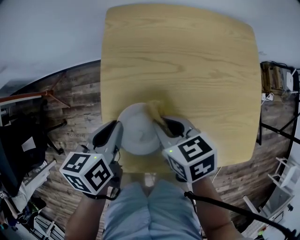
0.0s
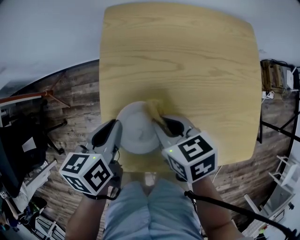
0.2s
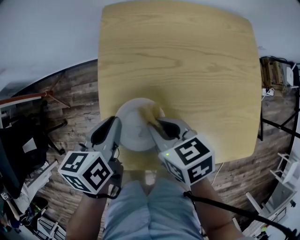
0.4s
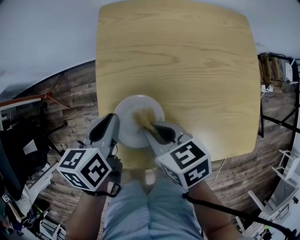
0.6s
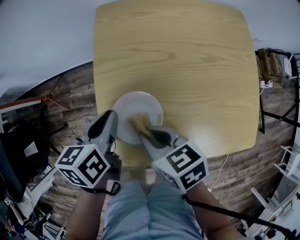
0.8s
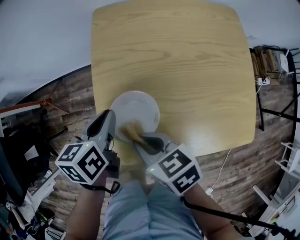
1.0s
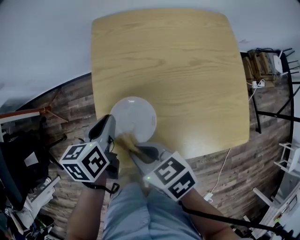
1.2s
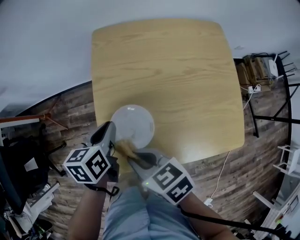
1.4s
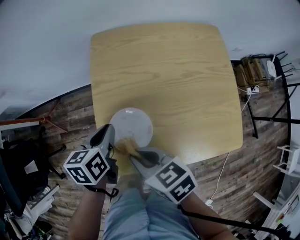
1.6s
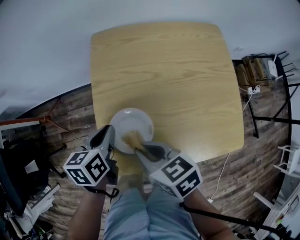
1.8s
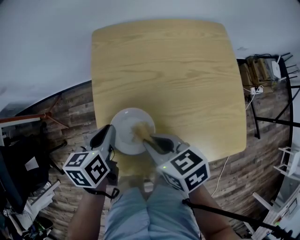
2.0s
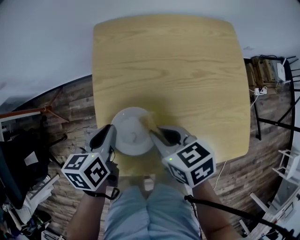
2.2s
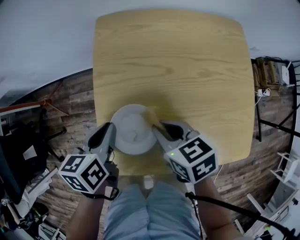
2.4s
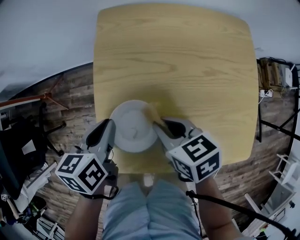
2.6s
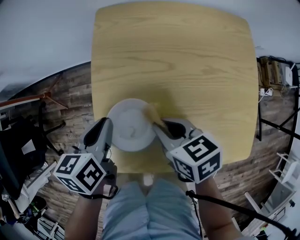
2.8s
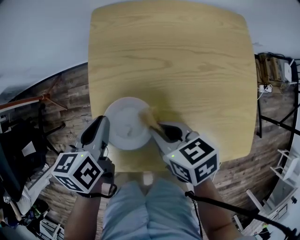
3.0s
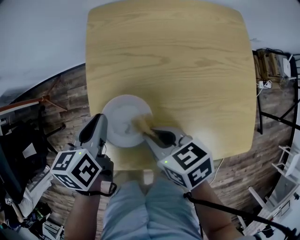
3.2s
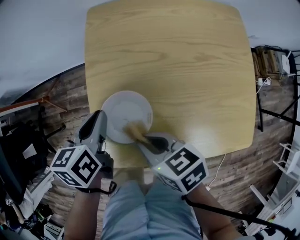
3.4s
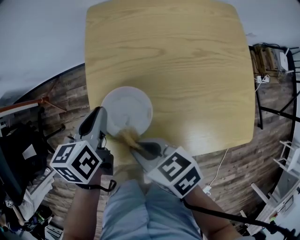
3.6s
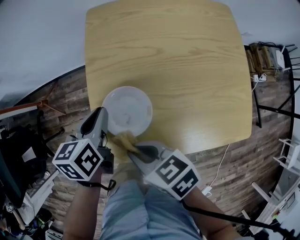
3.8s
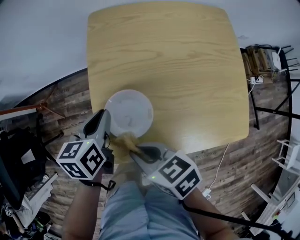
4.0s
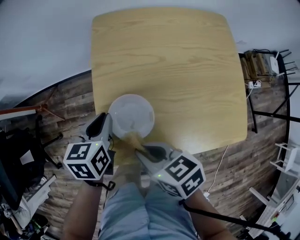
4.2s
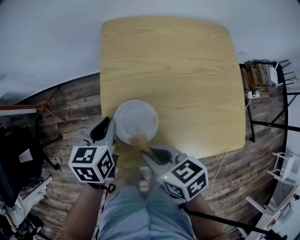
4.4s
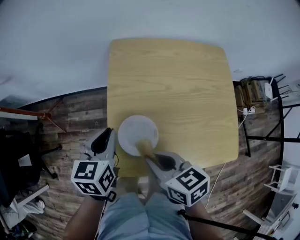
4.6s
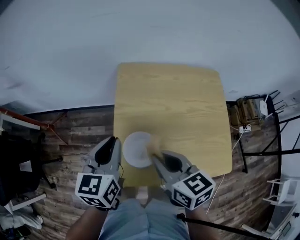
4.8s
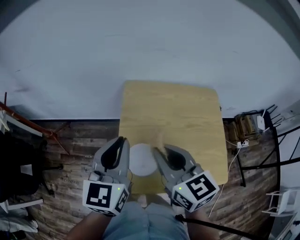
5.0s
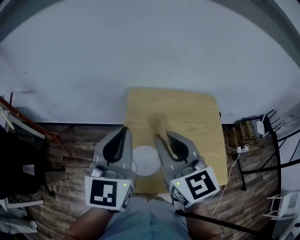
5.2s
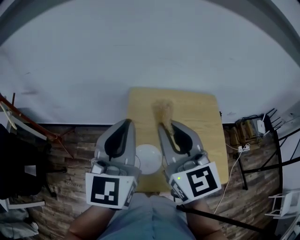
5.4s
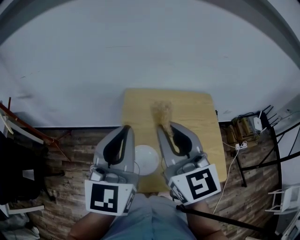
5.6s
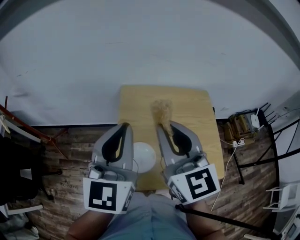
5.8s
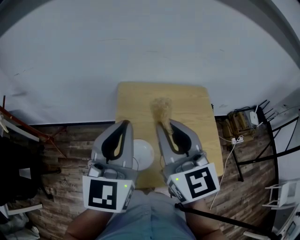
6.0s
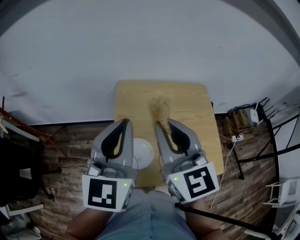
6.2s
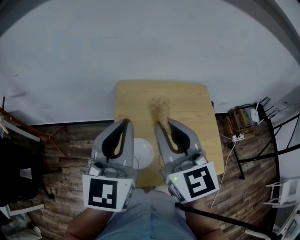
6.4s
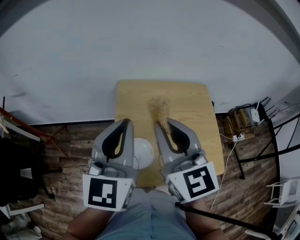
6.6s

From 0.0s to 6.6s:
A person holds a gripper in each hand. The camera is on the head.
From 0.0s to 1.6s: The right gripper heads backward, to the left and upward, covering some 10 cm.
From 1.6s to 3.2s: The right gripper moves to the right and downward, approximately 10 cm.
From 3.2s to 5.0s: The two grippers go roughly 25 cm upward. The right gripper changes its angle by roughly 40 degrees; the left gripper points its fingers about 30 degrees further upward.
From 5.0s to 6.6s: Both grippers travel together upward, some 10 cm. The right gripper swivels roughly 20 degrees.

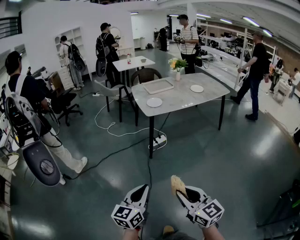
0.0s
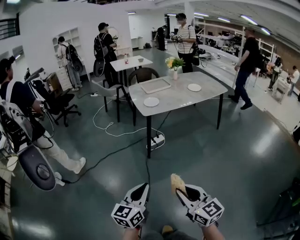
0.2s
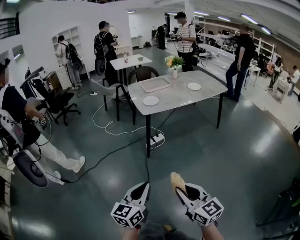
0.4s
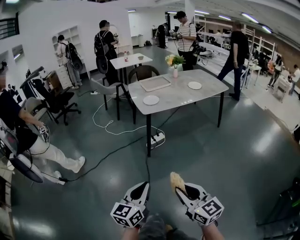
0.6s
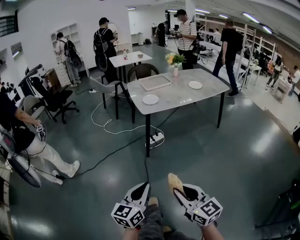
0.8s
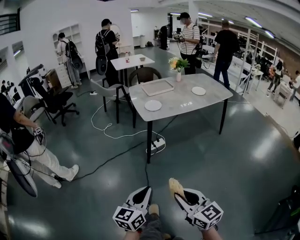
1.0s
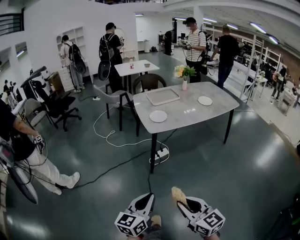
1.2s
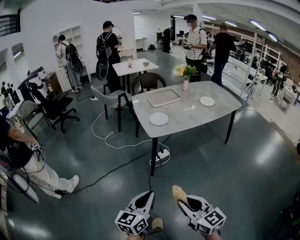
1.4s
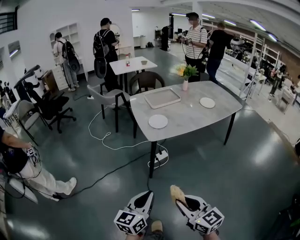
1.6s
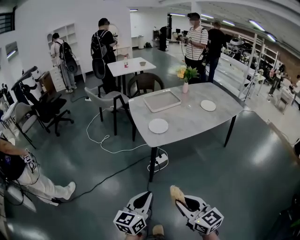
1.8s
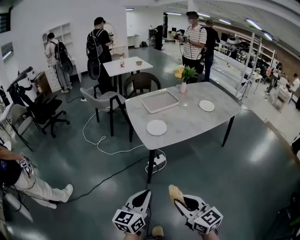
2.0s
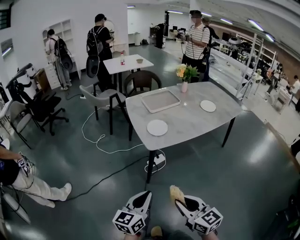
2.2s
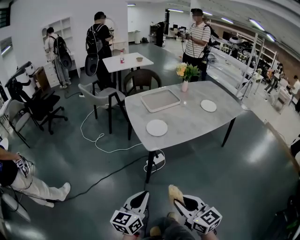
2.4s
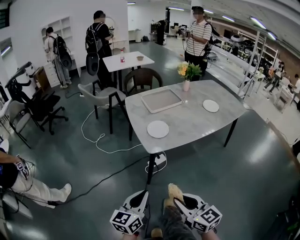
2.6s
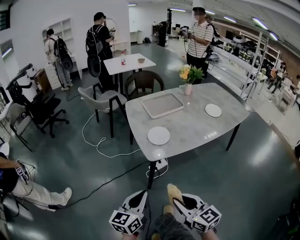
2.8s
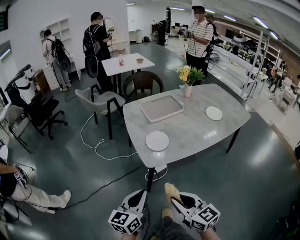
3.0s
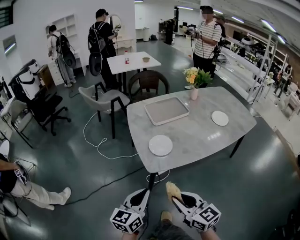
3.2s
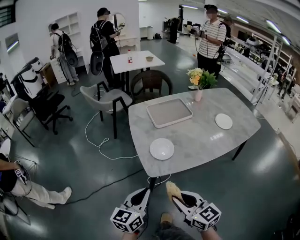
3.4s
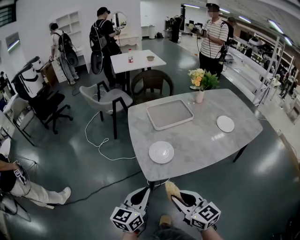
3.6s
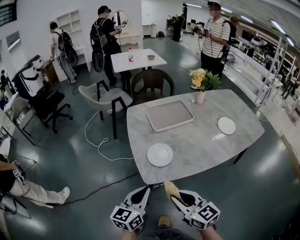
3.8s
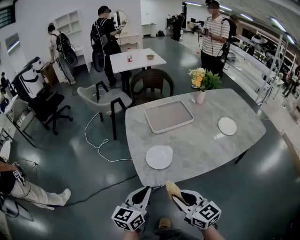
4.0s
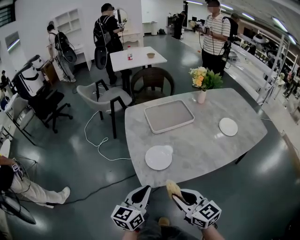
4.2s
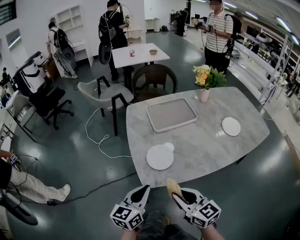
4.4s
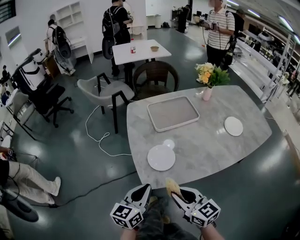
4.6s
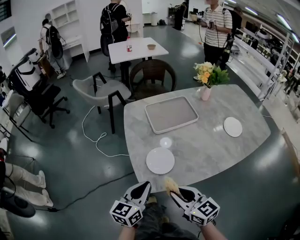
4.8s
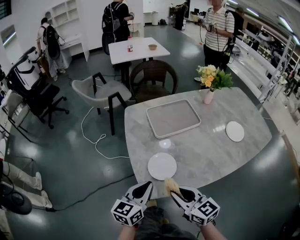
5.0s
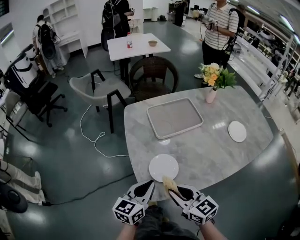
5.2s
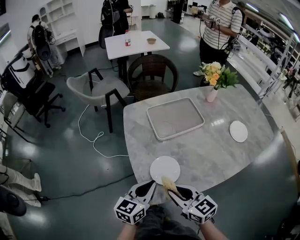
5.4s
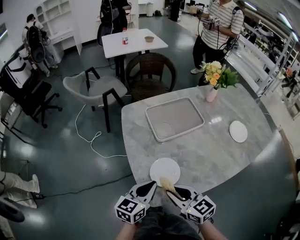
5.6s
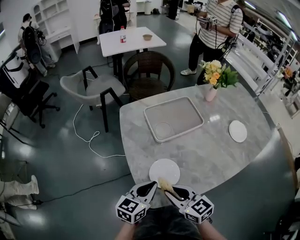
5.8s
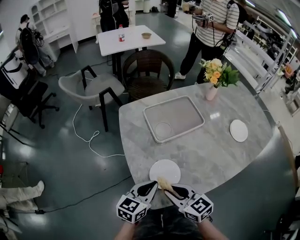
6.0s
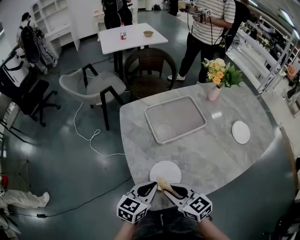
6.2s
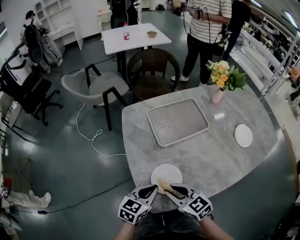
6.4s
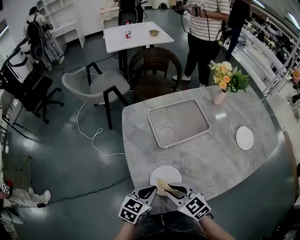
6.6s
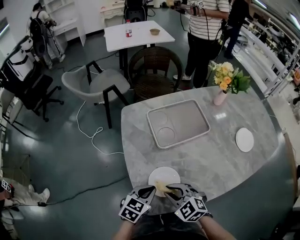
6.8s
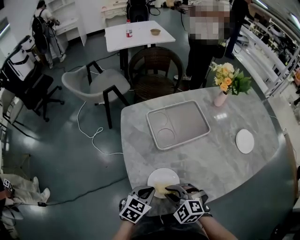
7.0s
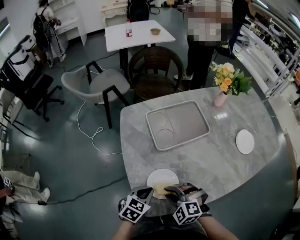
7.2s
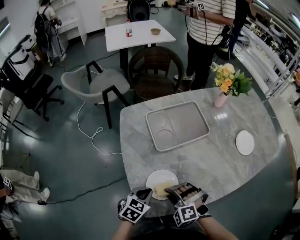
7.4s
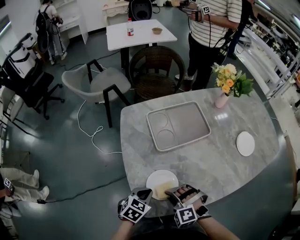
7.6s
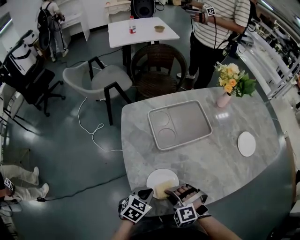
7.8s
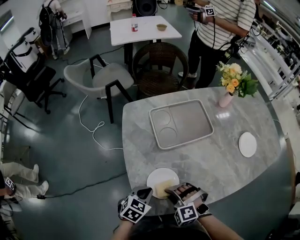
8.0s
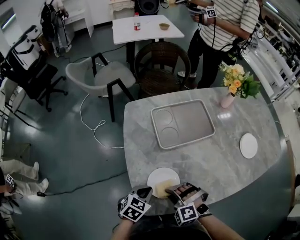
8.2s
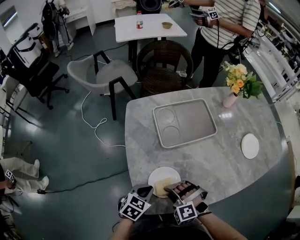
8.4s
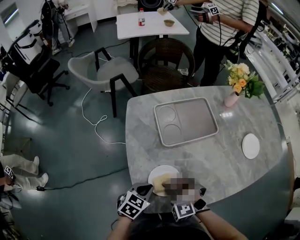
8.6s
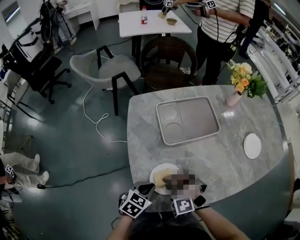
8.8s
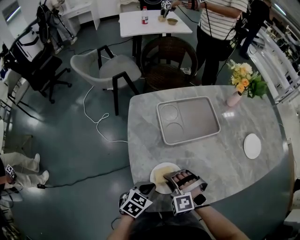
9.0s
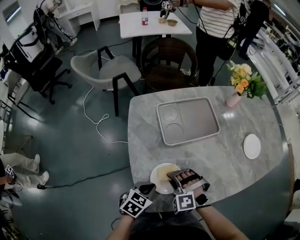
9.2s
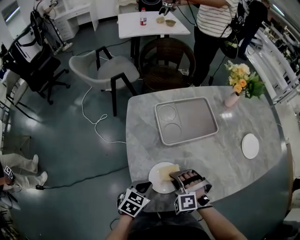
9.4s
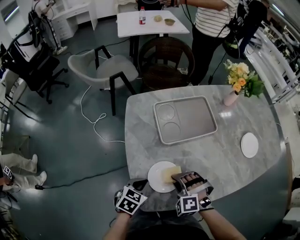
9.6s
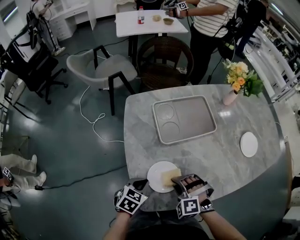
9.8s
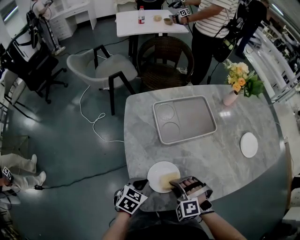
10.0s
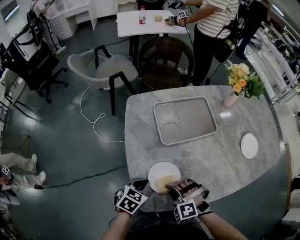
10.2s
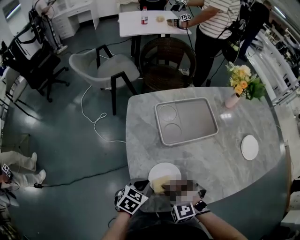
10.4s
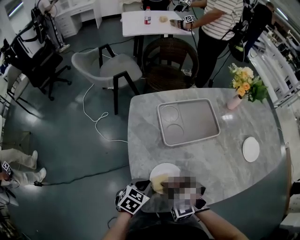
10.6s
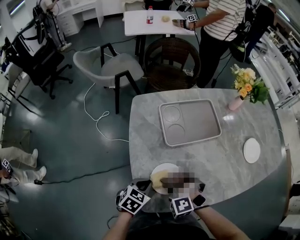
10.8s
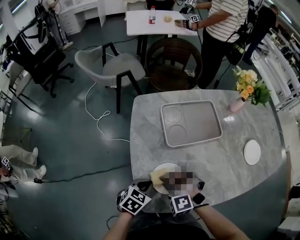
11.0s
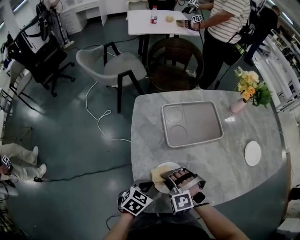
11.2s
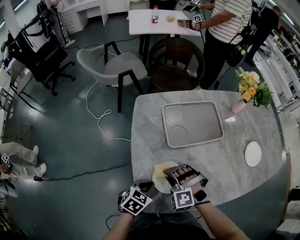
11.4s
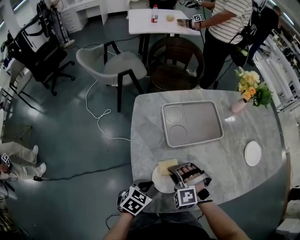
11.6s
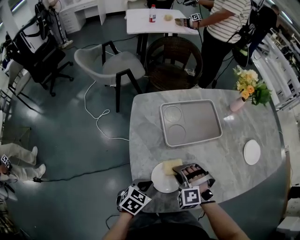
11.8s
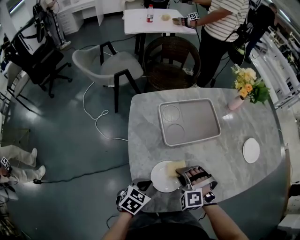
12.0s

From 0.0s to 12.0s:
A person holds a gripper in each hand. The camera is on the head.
From 0.0s to 1.6s: Both grippers travel together forward, approximately 25 cm.
From 1.6s to 3.0s: The grippers both shift forward by roughly 25 cm.
From 3.0s to 4.4s: The right gripper goes about 20 cm forward. The left gripper moves forward and to the right, approximately 20 cm.
From 4.4s to 6.0s: Both grippers travel together forward, roughly 15 cm.
From 6.0s to 7.6s: Both grippers travel together downward, roughly 10 cm. The left gripper changes its angle by approximately 30 degrees, while the right gripper rolls counterclockwise, seen from behind, by roughly 70 degrees.
From 7.6s to 9.0s: The right gripper travels forward by about 5 cm.
From 9.0s to 10.4s: The grippers make only small movements.
From 10.4s to 12.0s: The right gripper heads forward, covering some 10 cm.

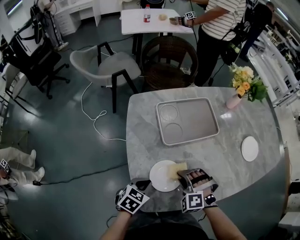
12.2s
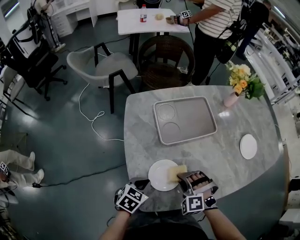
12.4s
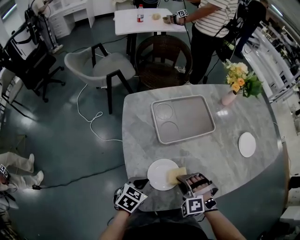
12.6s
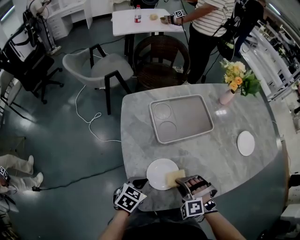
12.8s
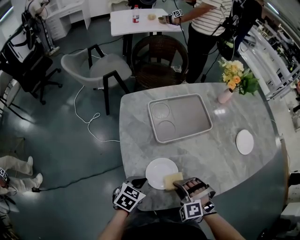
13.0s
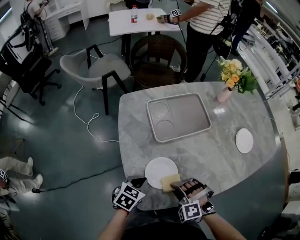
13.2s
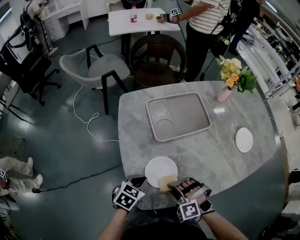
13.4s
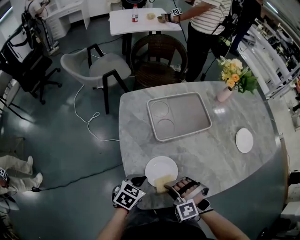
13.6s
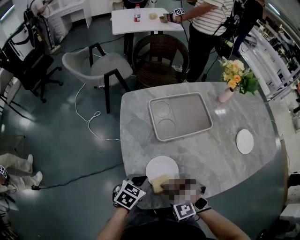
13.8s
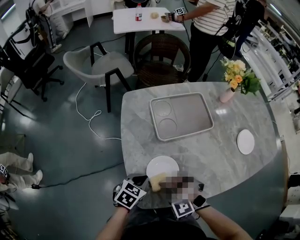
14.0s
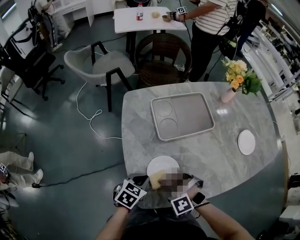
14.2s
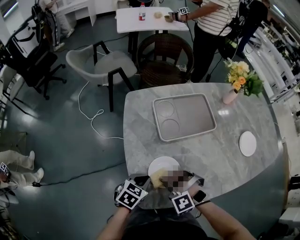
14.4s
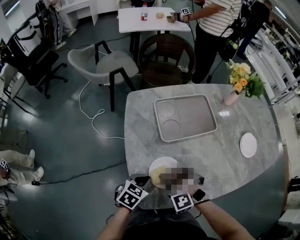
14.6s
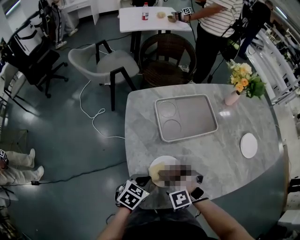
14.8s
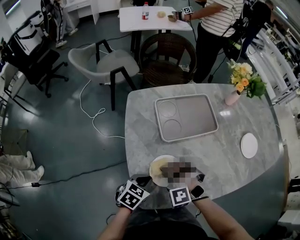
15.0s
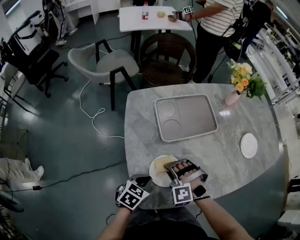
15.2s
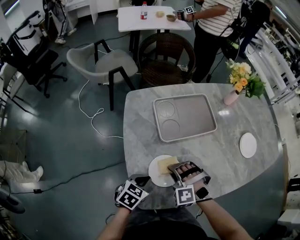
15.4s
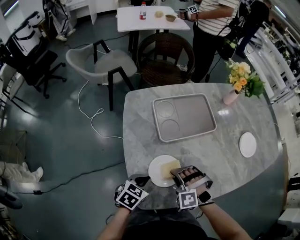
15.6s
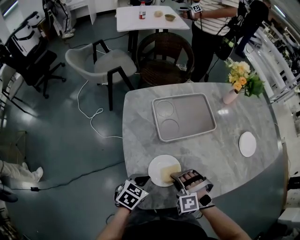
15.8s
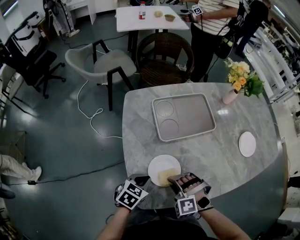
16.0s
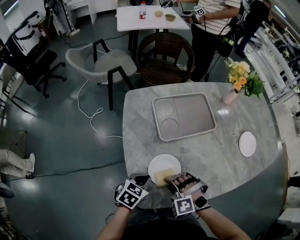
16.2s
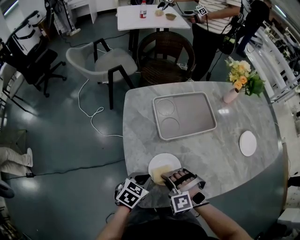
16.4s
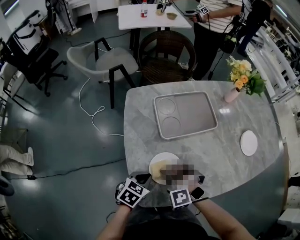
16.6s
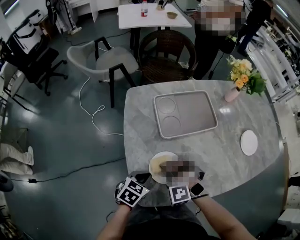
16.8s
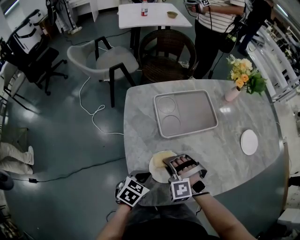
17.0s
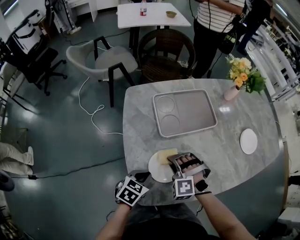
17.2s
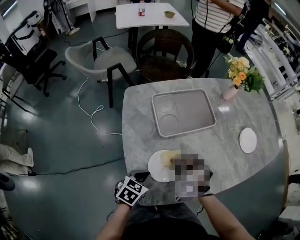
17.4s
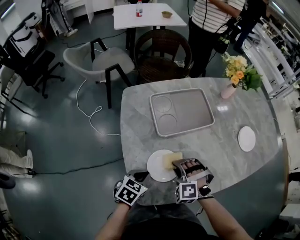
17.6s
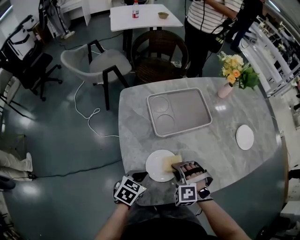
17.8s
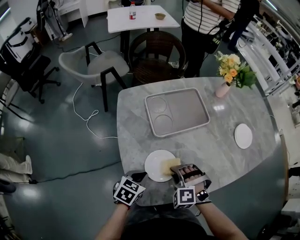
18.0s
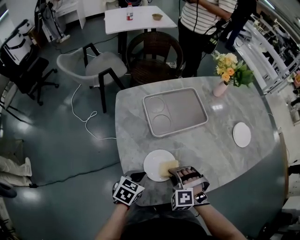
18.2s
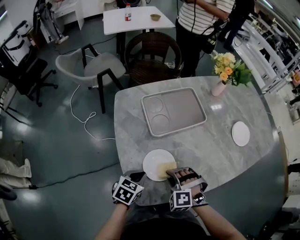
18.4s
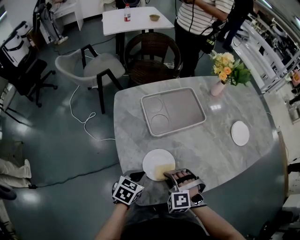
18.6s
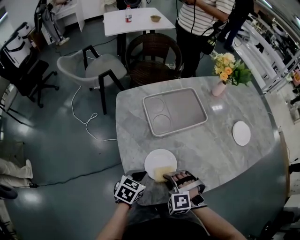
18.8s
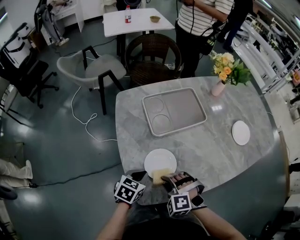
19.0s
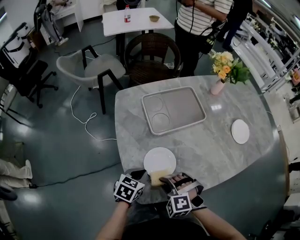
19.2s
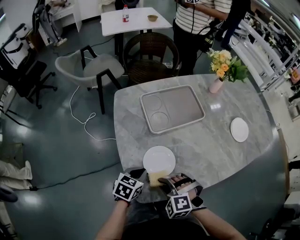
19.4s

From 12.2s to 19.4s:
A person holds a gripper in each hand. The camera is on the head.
From 12.2s to 13.6s: The right gripper shifts roughly 10 cm backward.
From 13.6s to 15.0s: The right gripper shifts about 5 cm forward.
From 16.6s to 18.0s: The right gripper is displaced to the right by approximately 5 cm.
From 18.0s to 19.4s: The right gripper shifts approximately 10 cm backward.
